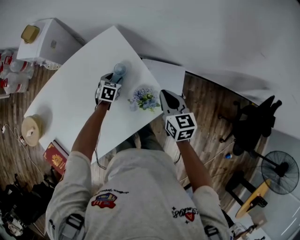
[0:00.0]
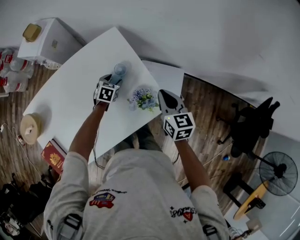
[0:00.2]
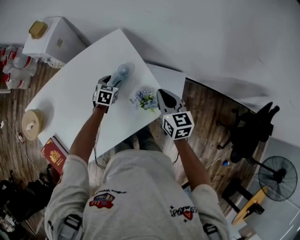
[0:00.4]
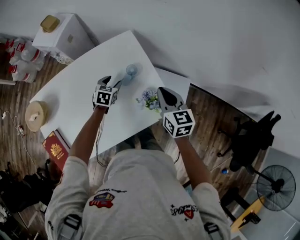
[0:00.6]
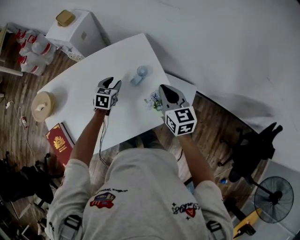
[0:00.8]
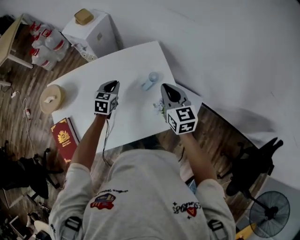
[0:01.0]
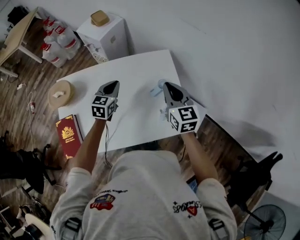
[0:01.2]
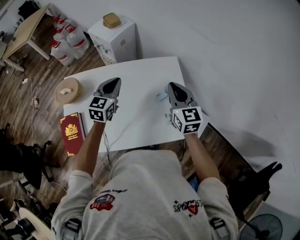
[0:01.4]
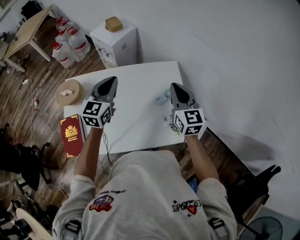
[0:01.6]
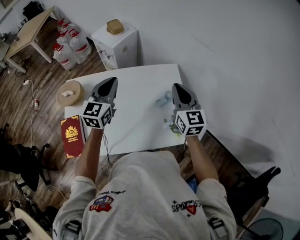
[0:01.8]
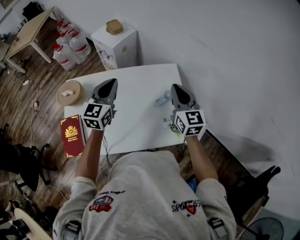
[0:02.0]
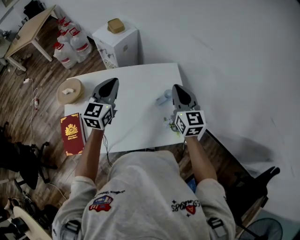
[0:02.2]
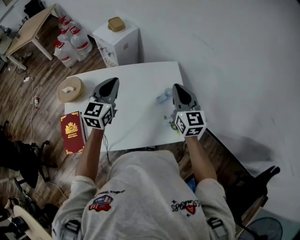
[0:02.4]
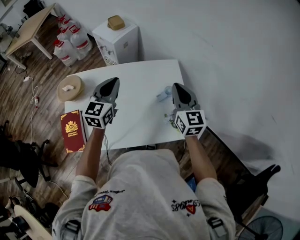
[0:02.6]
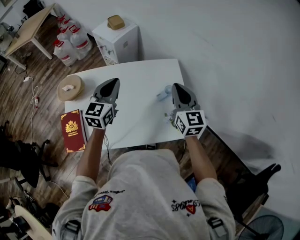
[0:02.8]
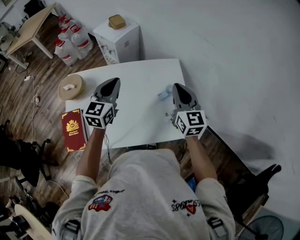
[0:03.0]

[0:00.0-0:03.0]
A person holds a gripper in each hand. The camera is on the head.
0:00.0 to 0:01.6: The left gripper moves upward, roughly 40 cm, tips its fingers upward by roughly 40 degrees, and closes its fingers. Meanwhile the right gripper shifts by some 30 cm, and turns by roughly 40 degrees.
0:01.6 to 0:03.0: The grippers make only small movements.

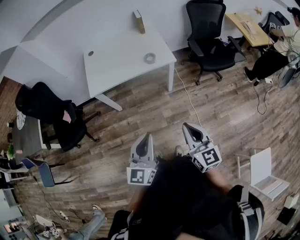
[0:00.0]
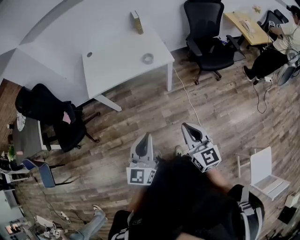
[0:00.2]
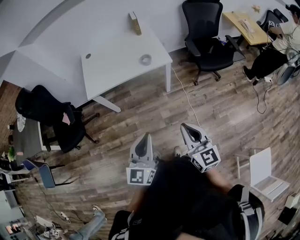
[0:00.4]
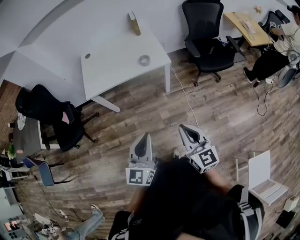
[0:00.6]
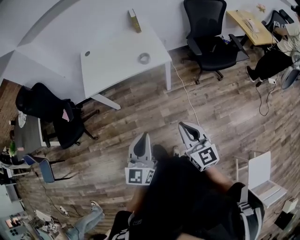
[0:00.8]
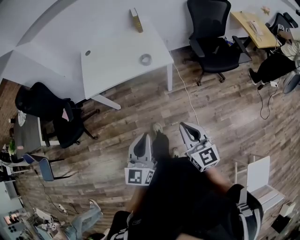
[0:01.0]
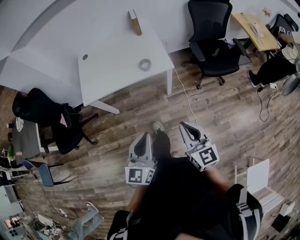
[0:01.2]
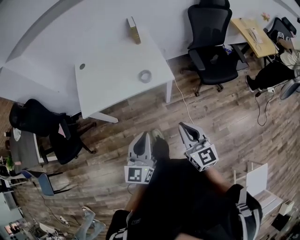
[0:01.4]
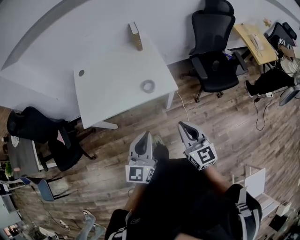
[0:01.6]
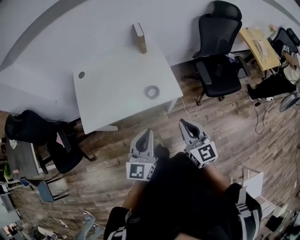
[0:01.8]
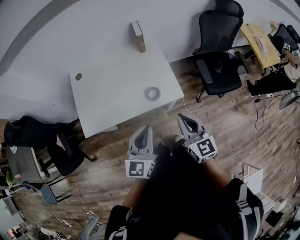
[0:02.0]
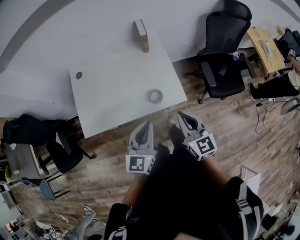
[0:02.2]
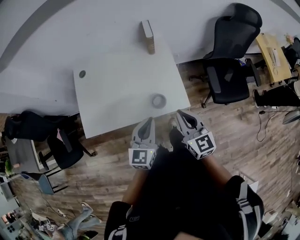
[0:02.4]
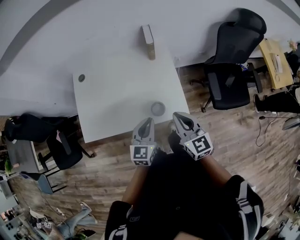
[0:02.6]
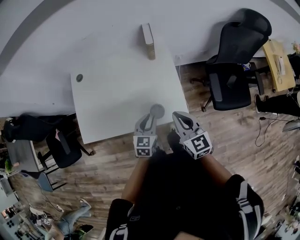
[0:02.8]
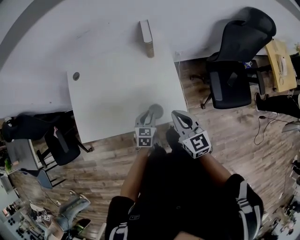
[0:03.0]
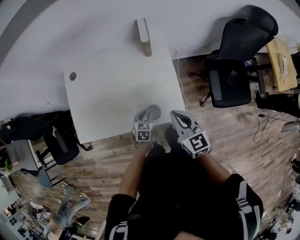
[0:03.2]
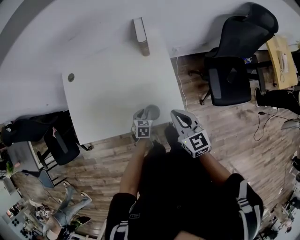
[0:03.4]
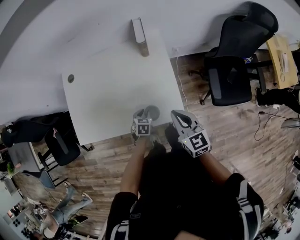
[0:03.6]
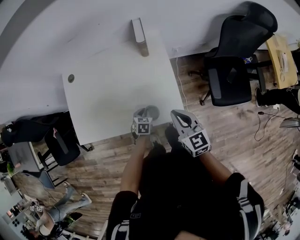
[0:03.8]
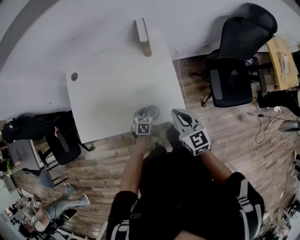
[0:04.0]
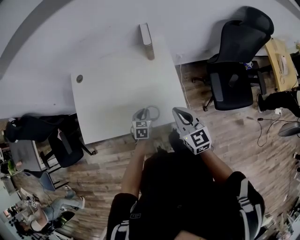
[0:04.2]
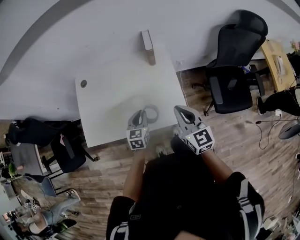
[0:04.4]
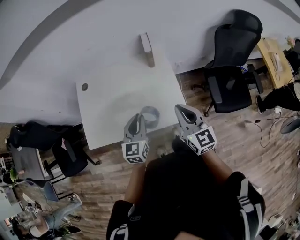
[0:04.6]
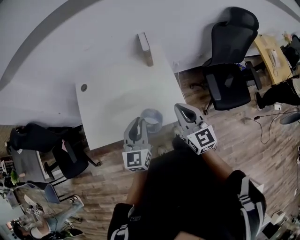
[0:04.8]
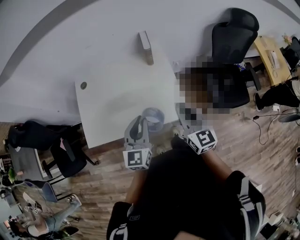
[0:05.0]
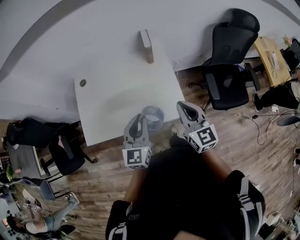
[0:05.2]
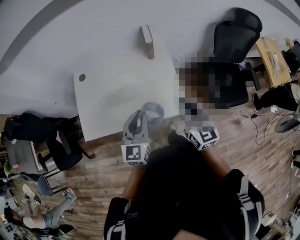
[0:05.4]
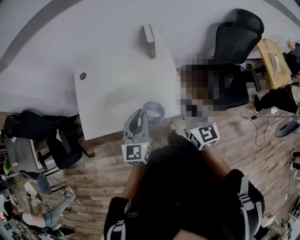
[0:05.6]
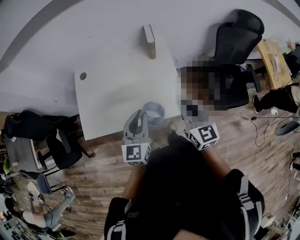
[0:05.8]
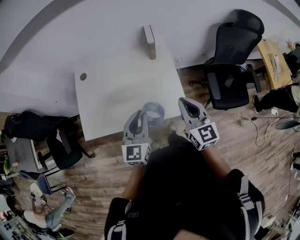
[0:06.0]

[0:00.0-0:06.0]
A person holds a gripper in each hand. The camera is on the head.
0:00.0 to 0:01.6: The grippers both shift forward by about 30 cm.
0:01.6 to 0:03.0: The left gripper heads forward and downward, covering some 40 cm, and tips its fingers downward by some 40 degrees. Meanwhile the right gripper travels forward by about 35 cm.
0:03.0 to 0:04.4: The left gripper goes about 10 cm upward and to the left.
0:04.4 to 0:06.0: The left gripper is displaced upward and backward by roughly 20 cm, and swivels about 20 degrees.

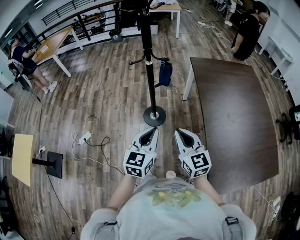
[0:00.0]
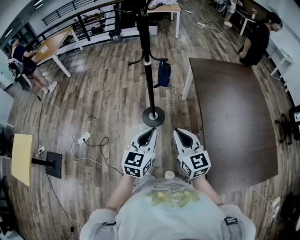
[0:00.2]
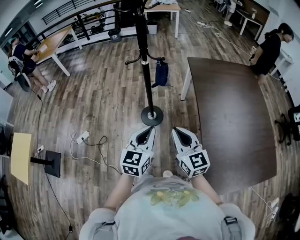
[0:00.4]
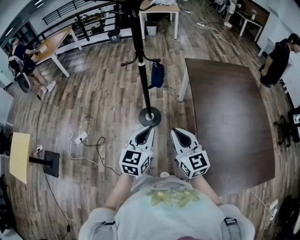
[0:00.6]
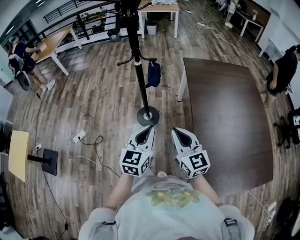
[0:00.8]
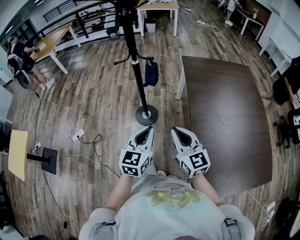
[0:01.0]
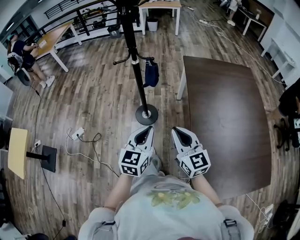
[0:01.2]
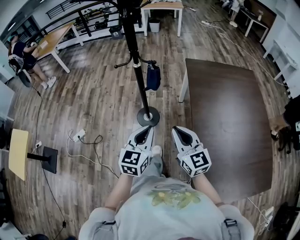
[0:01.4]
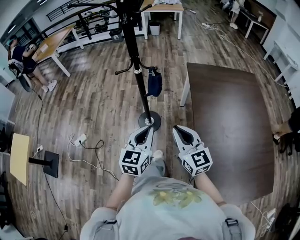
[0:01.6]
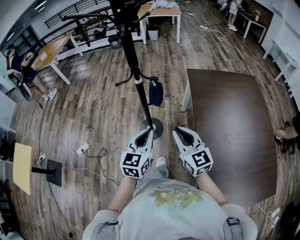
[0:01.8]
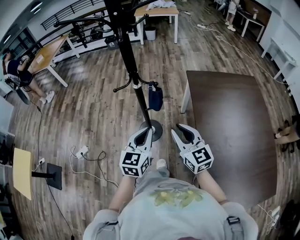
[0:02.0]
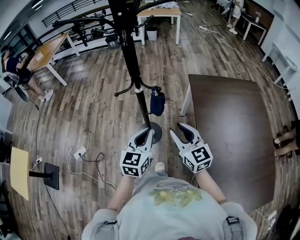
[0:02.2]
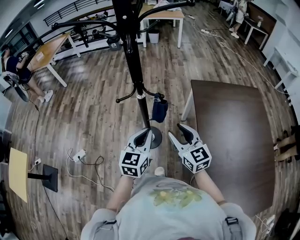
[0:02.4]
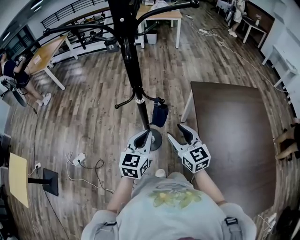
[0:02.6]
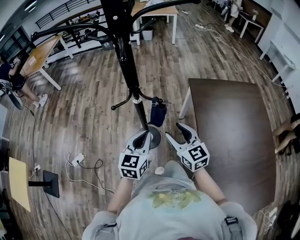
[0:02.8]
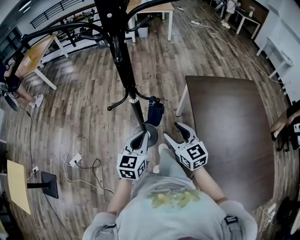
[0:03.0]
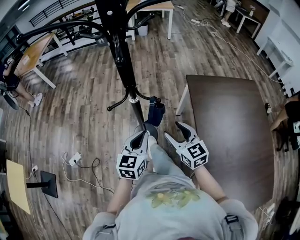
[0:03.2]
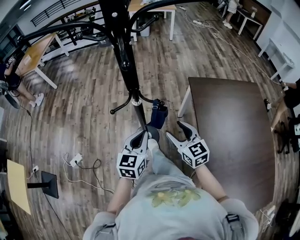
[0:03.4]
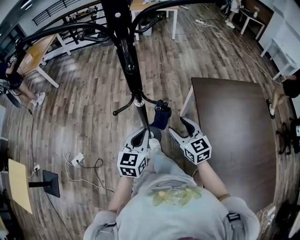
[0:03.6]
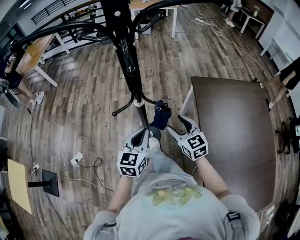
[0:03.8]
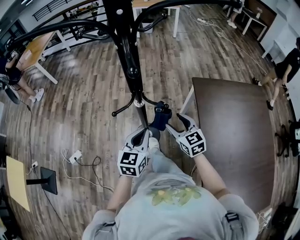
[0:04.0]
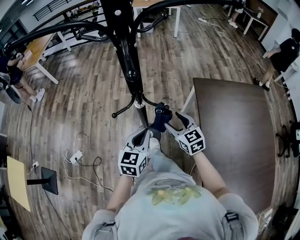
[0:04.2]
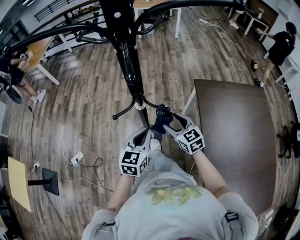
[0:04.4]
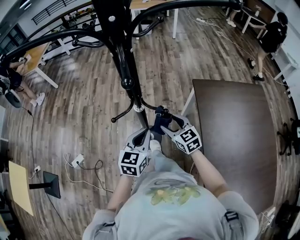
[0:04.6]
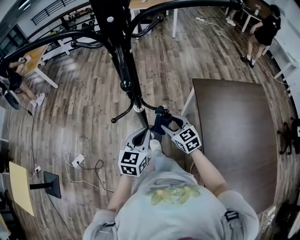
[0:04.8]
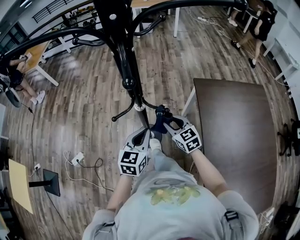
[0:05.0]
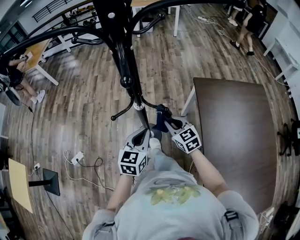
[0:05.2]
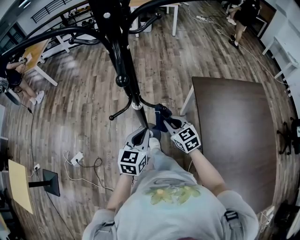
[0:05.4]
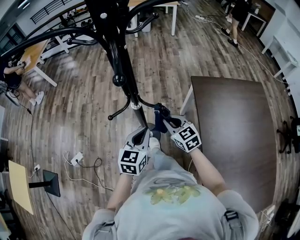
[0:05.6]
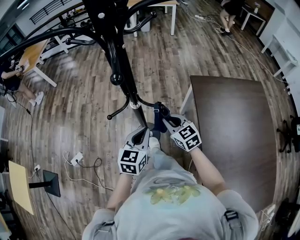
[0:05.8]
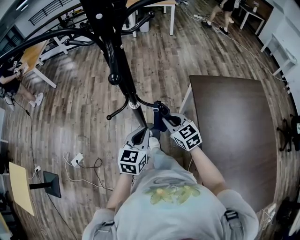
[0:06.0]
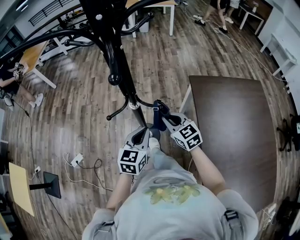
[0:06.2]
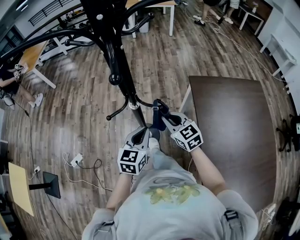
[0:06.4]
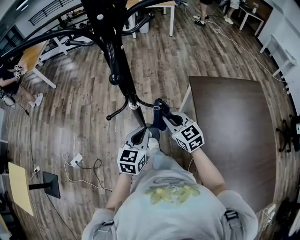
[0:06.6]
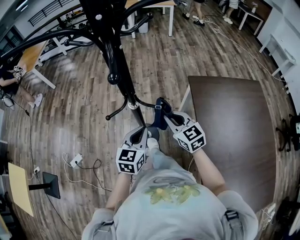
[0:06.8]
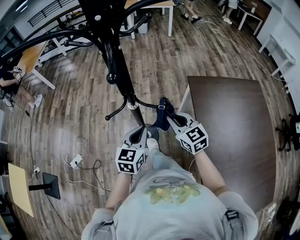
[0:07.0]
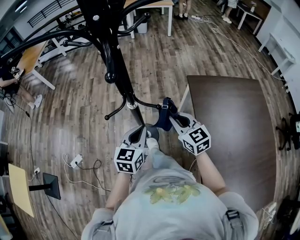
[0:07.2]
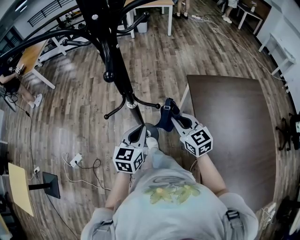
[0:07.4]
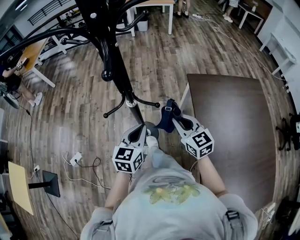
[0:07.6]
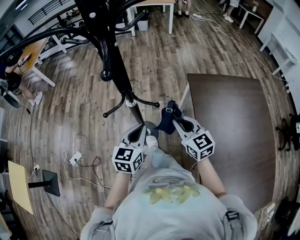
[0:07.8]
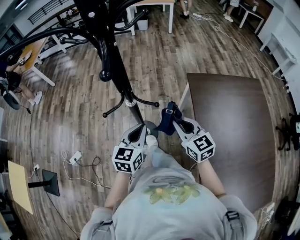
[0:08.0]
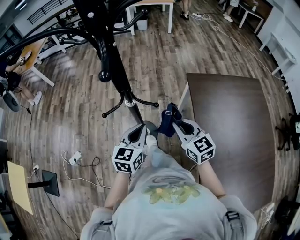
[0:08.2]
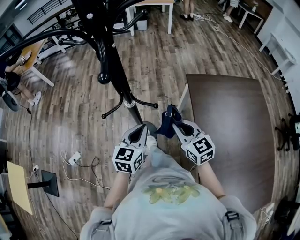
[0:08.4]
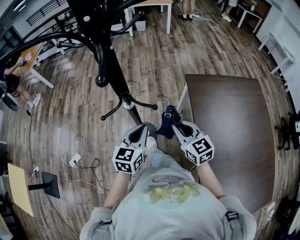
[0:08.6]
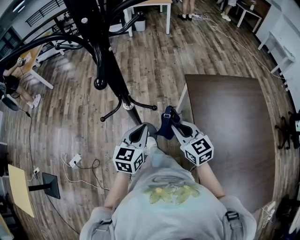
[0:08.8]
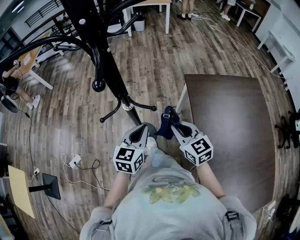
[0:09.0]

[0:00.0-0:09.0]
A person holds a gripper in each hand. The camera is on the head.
0:00.0 to 0:01.6: Both grippers move forward and to the right, approximately 10 cm.
0:01.6 to 0:03.0: Both grippers move forward, some 20 cm. The right gripper opens up.
0:03.0 to 0:04.4: The right gripper goes some 15 cm forward and downward, while the left gripper travels forward by roughly 5 cm.
0:04.4 to 0:06.0: The right gripper closes up.
0:06.0 to 0:07.6: The right gripper travels upward and to the right by about 10 cm.
0:07.6 to 0:09.0: The grippers move only a little.

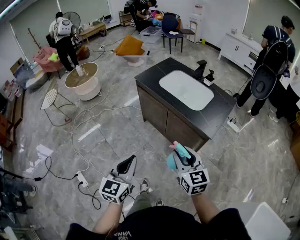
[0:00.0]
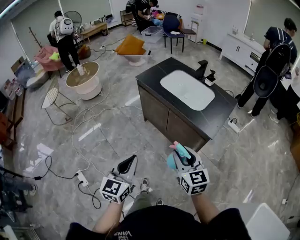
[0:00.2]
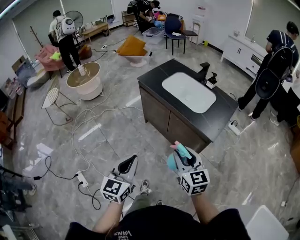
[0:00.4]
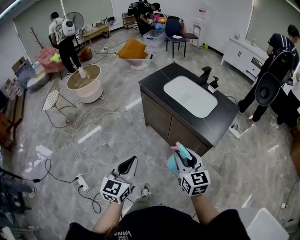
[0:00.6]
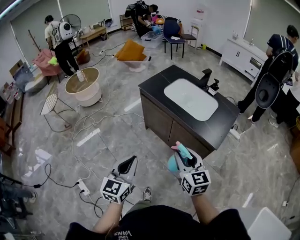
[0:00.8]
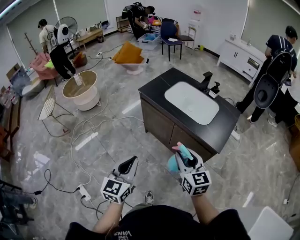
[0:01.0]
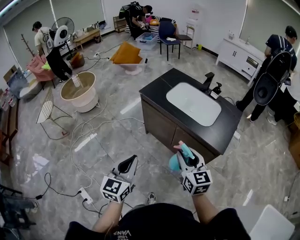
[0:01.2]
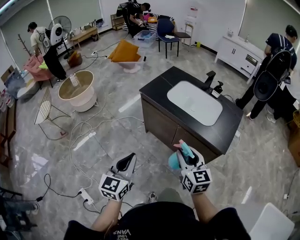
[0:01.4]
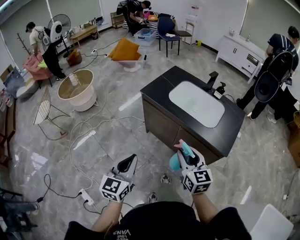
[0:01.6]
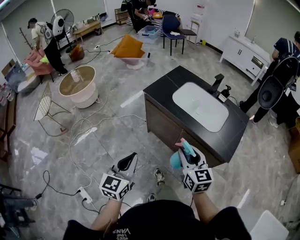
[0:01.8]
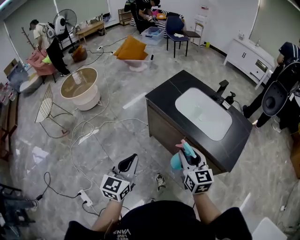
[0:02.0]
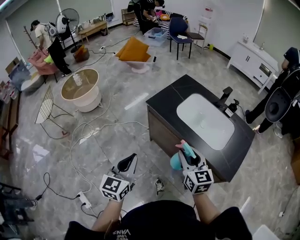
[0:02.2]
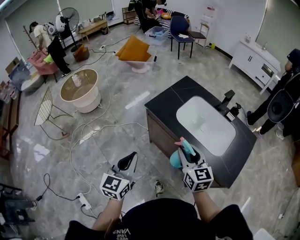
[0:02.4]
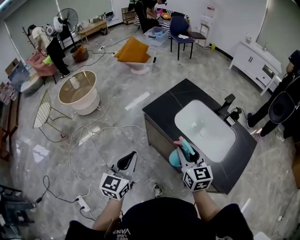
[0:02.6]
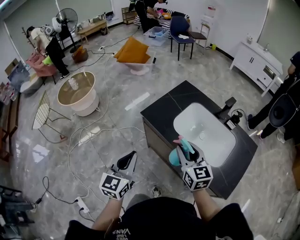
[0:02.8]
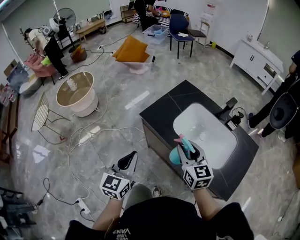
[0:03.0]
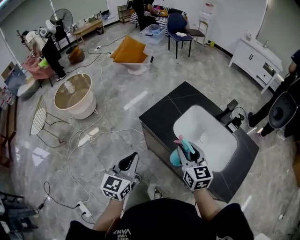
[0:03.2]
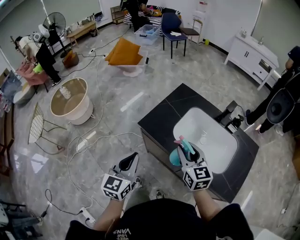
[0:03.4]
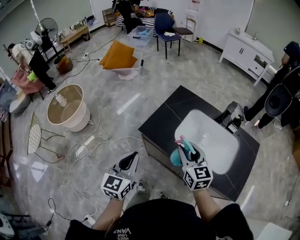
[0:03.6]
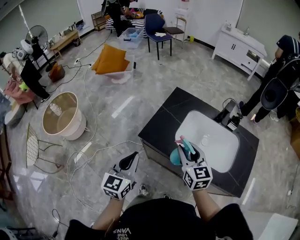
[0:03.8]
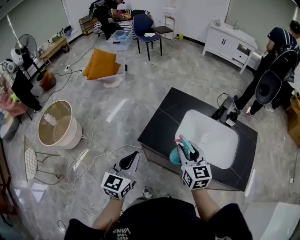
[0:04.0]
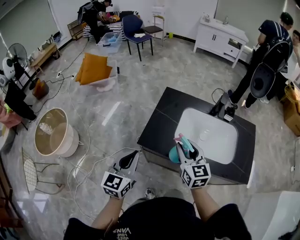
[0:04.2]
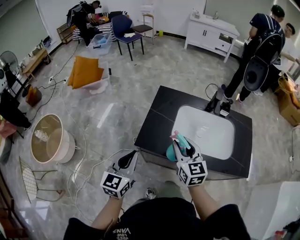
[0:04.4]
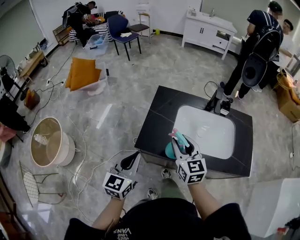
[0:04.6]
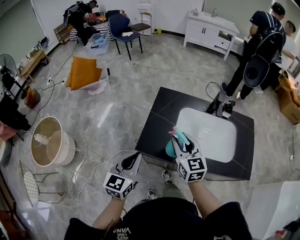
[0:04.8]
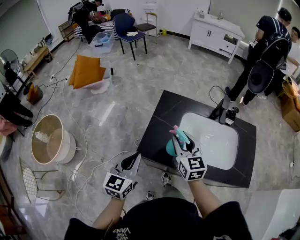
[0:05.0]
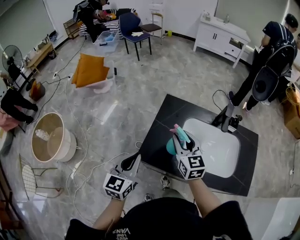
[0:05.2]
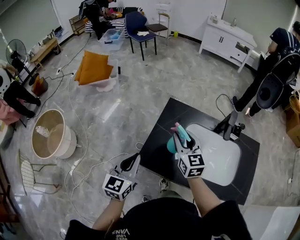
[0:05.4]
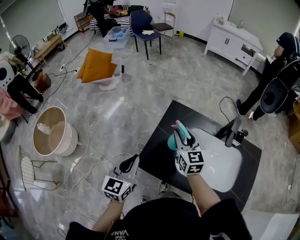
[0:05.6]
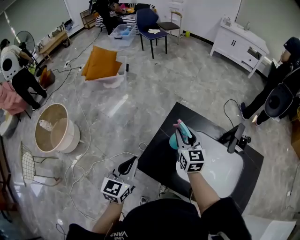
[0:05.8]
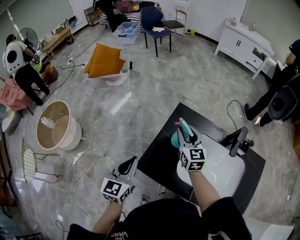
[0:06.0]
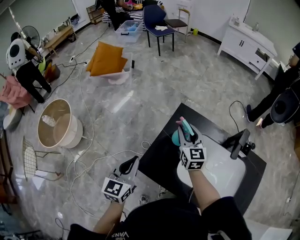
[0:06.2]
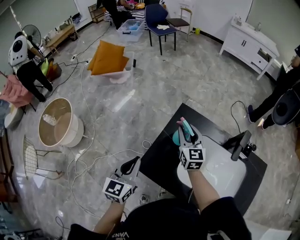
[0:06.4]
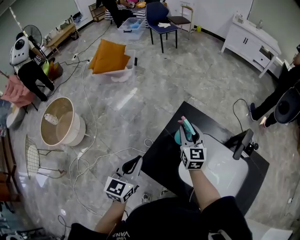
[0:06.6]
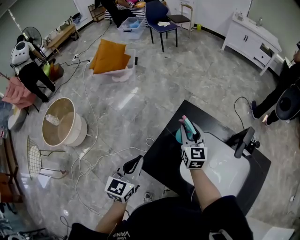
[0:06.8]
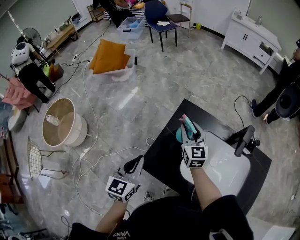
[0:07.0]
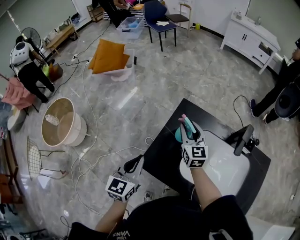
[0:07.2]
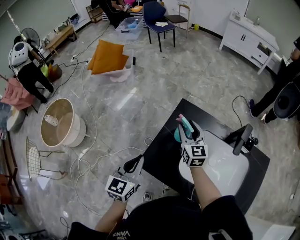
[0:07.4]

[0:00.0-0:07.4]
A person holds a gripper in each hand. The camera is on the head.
0:00.0 to 0:01.4: Both grippers travel together forward and to the left, some 20 cm.
0:01.4 to 0:03.0: The two grippers go approximately 30 cm forward.
0:03.0 to 0:04.4: The right gripper moves approximately 15 cm, and changes its angle by about 30 degrees. Meanwhile the left gripper shifts by approximately 20 cm, and turns by approximately 30 degrees.
0:04.4 to 0:06.0: The right gripper goes about 25 cm forward. The left gripper travels forward by about 15 cm.
0:06.0 to 0:07.4: The grippers make only small movements.
